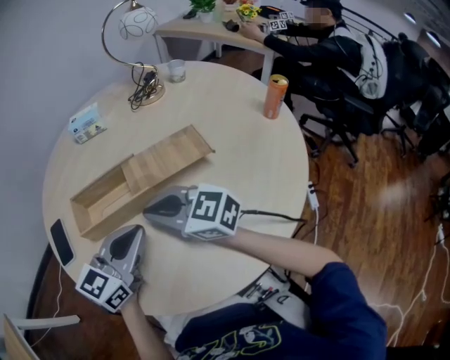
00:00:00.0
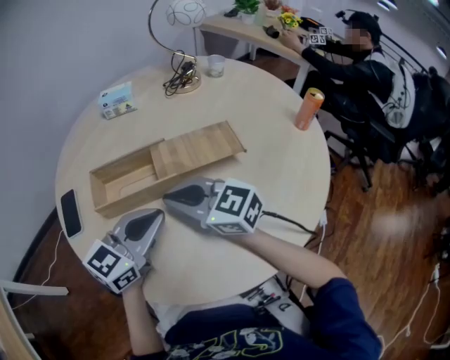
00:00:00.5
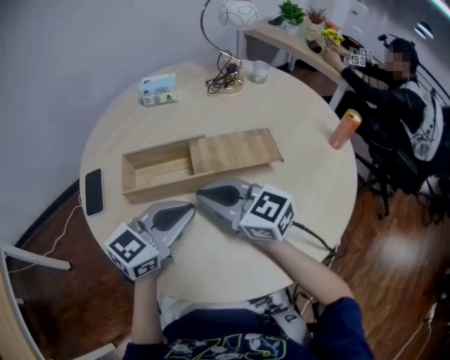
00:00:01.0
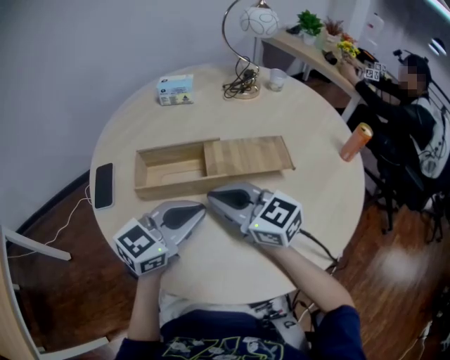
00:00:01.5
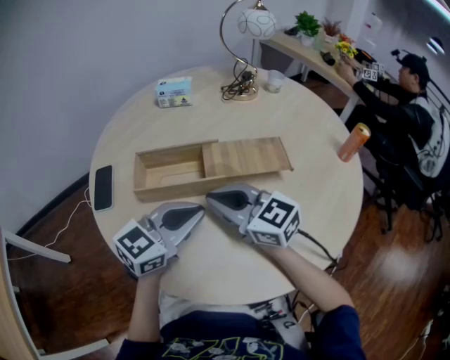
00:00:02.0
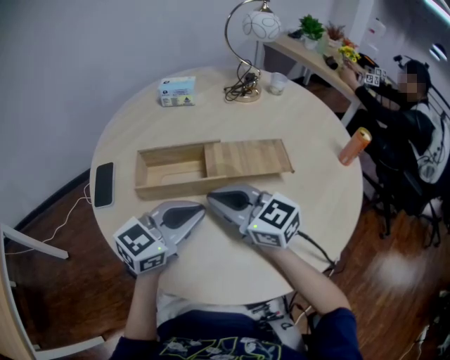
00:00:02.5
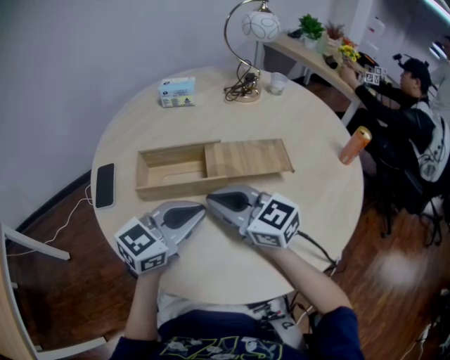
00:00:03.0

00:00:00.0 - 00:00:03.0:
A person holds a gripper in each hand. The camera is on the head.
00:00:00.0 - 00:00:03.0: Both grippers stay put.

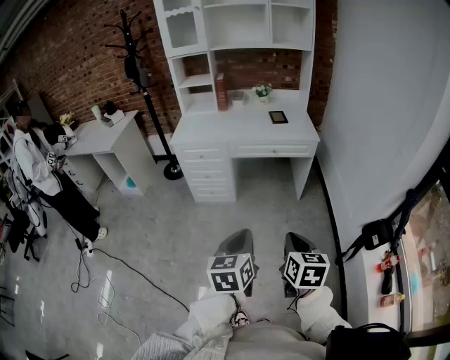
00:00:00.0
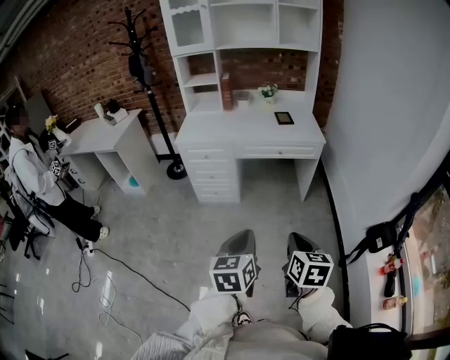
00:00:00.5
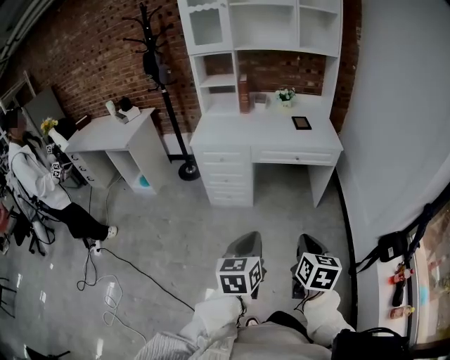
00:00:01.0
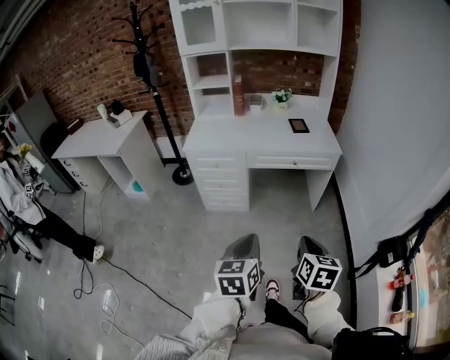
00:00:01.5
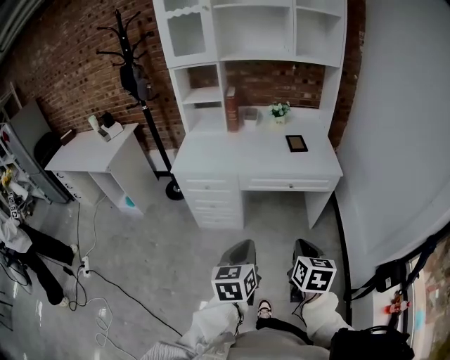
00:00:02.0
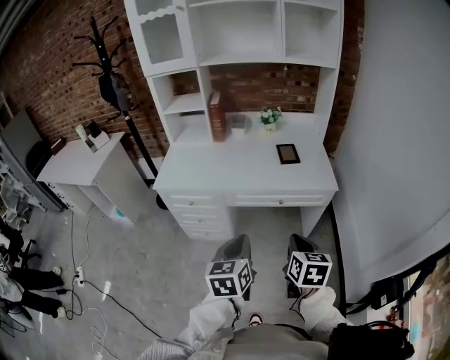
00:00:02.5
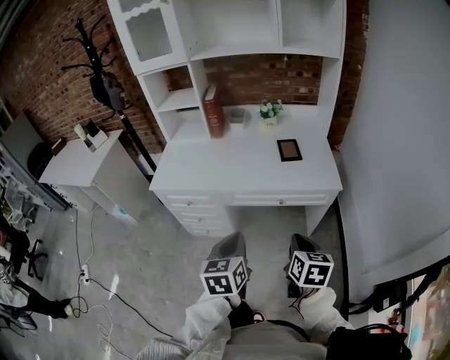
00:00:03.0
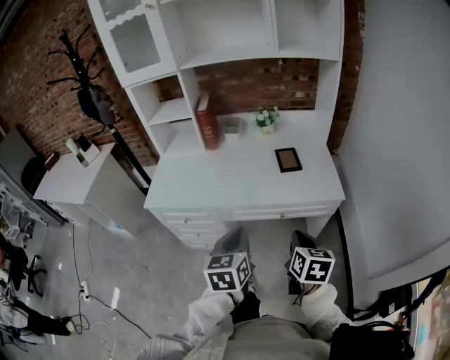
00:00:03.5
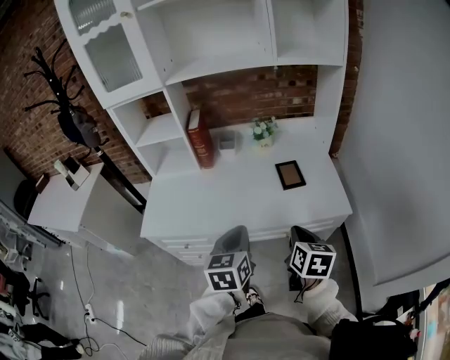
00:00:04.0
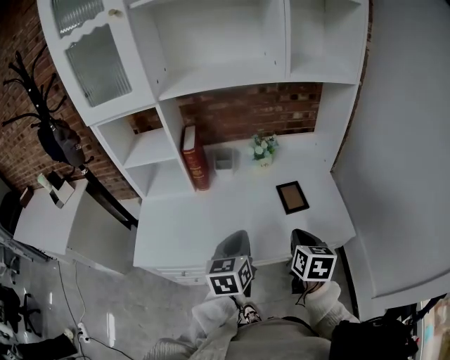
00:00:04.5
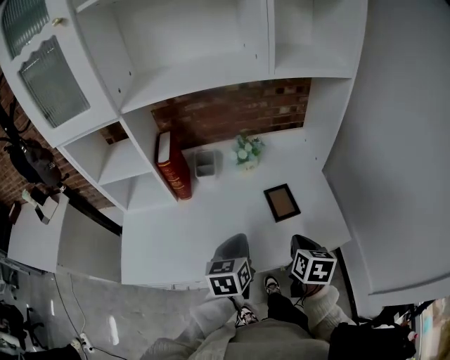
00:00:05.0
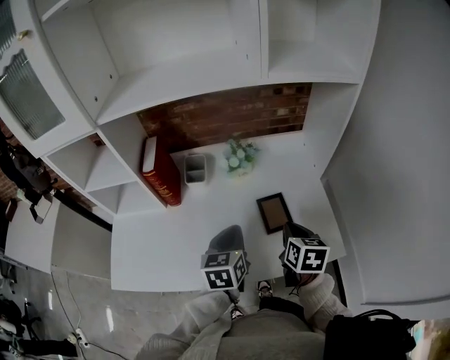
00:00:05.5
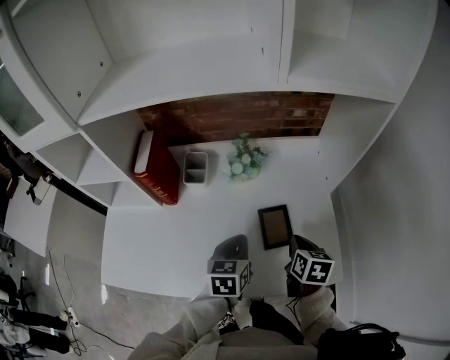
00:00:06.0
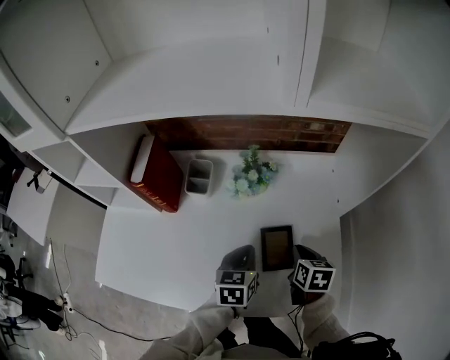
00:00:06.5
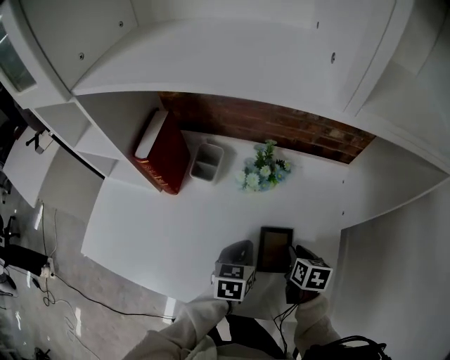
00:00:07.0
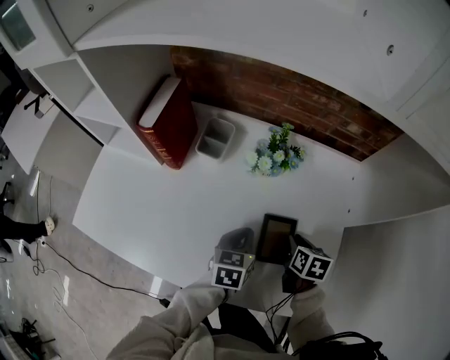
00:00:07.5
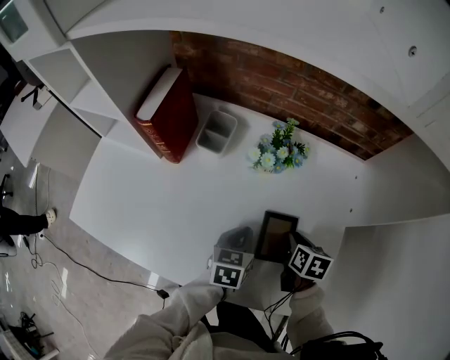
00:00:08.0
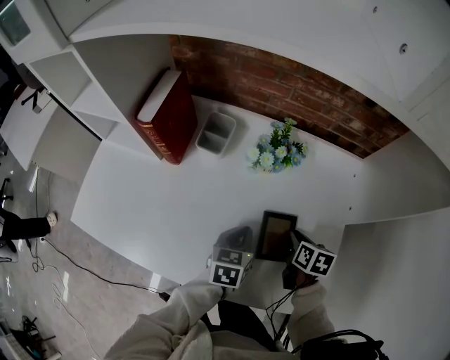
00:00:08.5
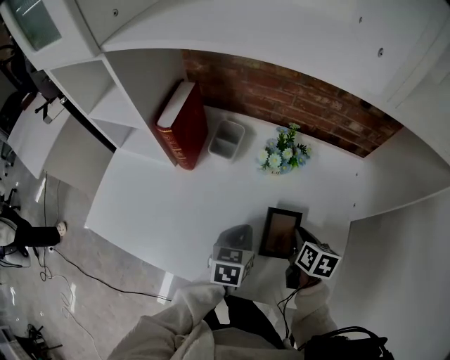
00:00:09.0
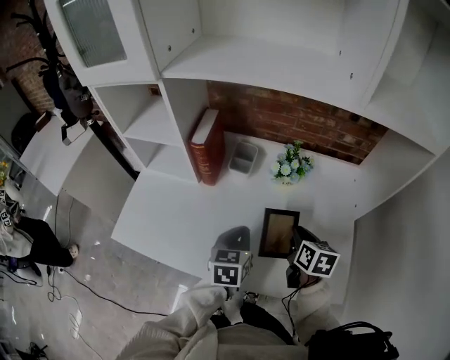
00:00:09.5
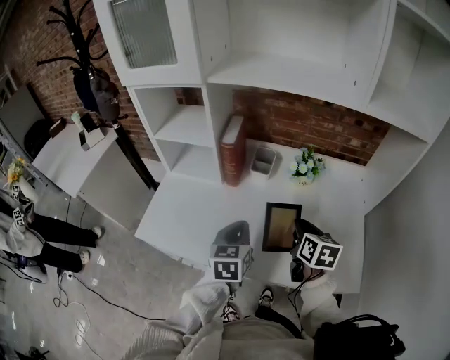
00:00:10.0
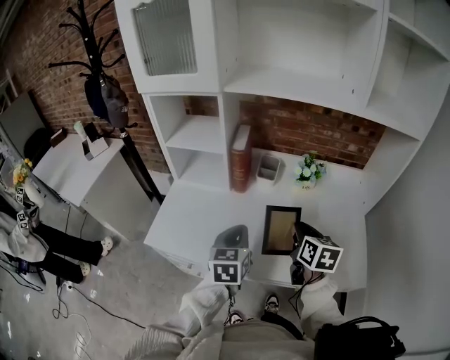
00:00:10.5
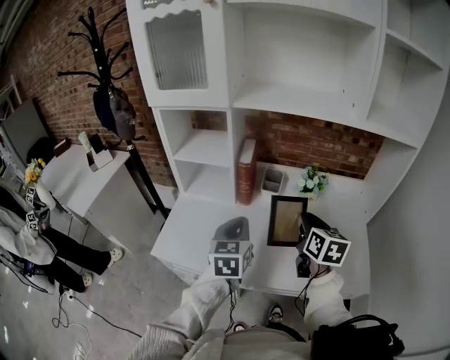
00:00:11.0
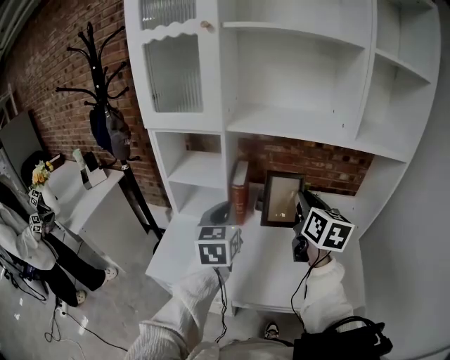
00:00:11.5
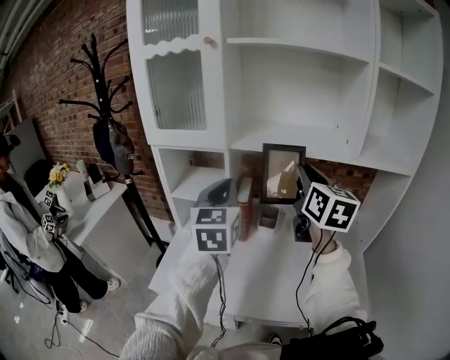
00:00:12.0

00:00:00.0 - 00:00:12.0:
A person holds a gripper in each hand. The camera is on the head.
00:00:00.0 - 00:00:02.0: Both grippers travel together forward, approximately 25 cm.
00:00:02.0 - 00:00:04.0: Both grippers move forward, approximately 40 cm.
00:00:04.0 - 00:00:06.0: The two grippers go about 30 cm forward.
00:00:06.0 - 00:00:08.0: The right gripper goes approximately 15 cm downward and forward; the left gripper moves downward, some 10 cm.
00:00:08.0 - 00:00:10.0: The two grippers go approximately 25 cm to the left, upward and backward. The right gripper turns by some 20 degrees.
00:00:10.0 - 00:00:12.0: The right gripper moves upward, approximately 30 cm, and angles its fingers upward, by roughly 30 degrees; the left gripper shifts approximately 30 cm upward and to the left, and changes its angle by roughly 30 degrees.

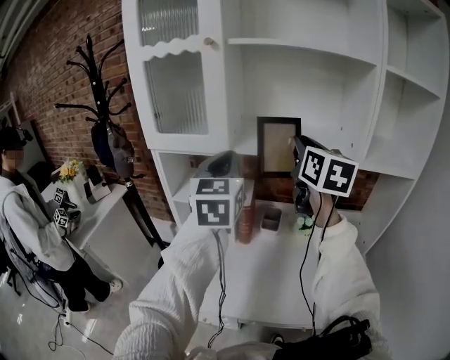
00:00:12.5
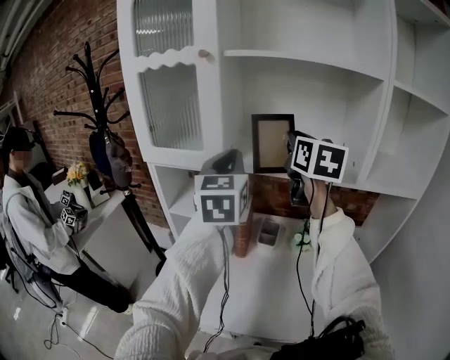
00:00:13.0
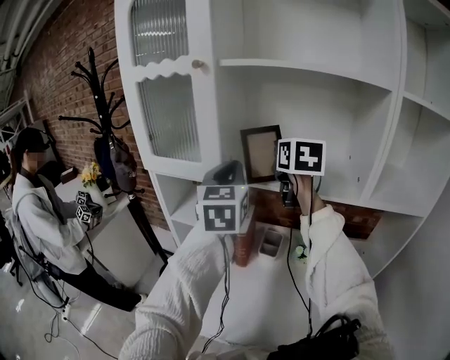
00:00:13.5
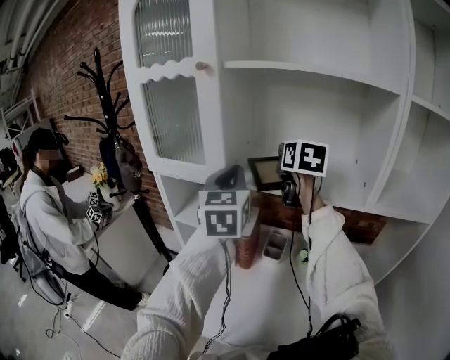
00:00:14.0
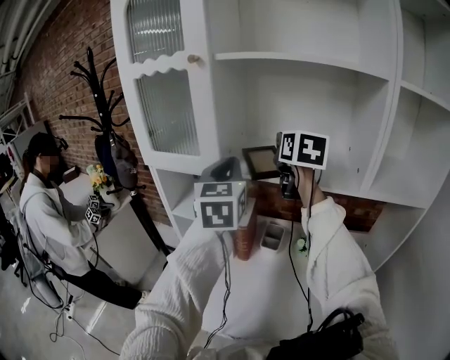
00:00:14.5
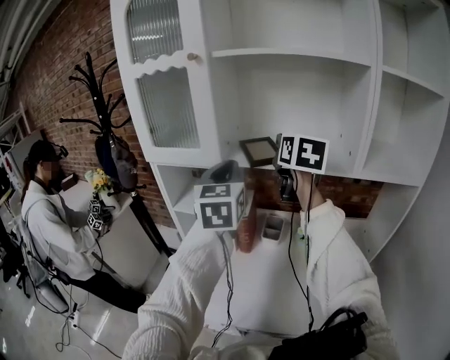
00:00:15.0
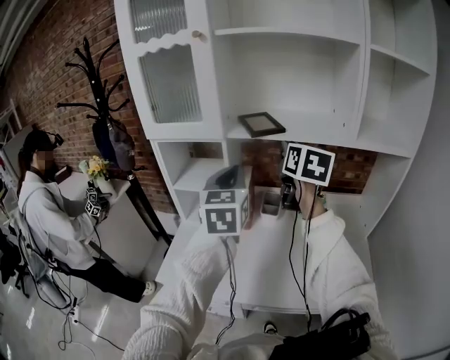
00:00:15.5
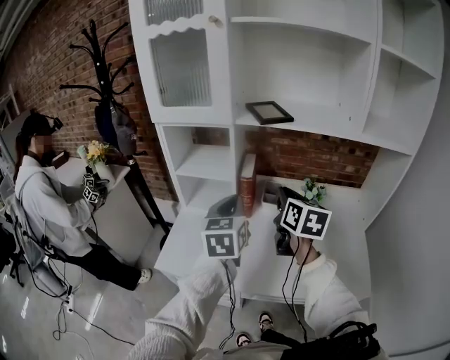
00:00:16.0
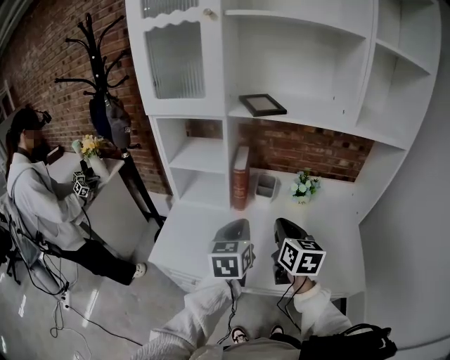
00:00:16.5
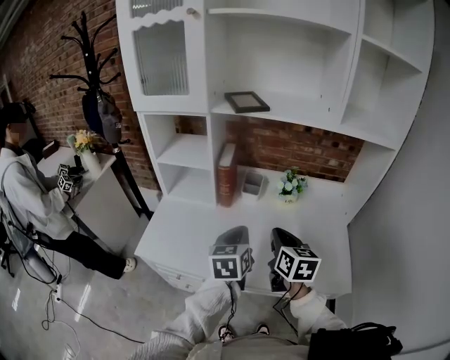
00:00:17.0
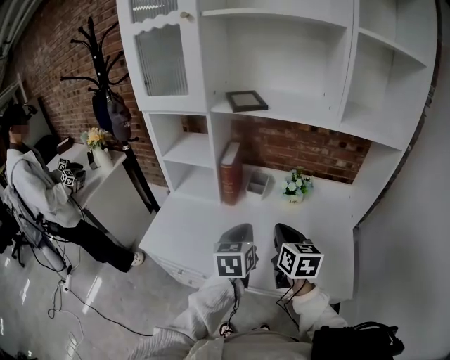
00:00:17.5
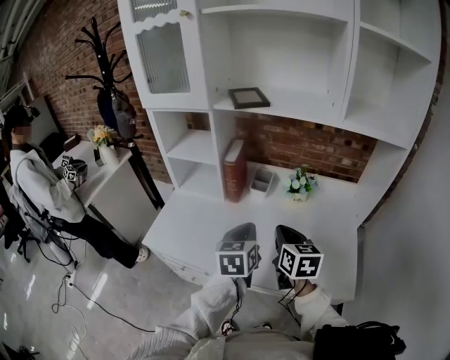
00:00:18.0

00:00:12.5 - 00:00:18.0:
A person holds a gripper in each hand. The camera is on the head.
00:00:12.5 - 00:00:14.5: The left gripper is displaced forward by approximately 10 cm. Meanwhile the right gripper heads forward, covering roughly 15 cm.
00:00:14.5 - 00:00:16.0: The right gripper heads backward and downward, covering roughly 30 cm; the left gripper moves downward and backward, roughly 25 cm.
00:00:16.0 - 00:00:18.0: The left gripper travels to the right, downward and backward by about 20 cm. Meanwhile the right gripper travels downward, backward and to the right by some 20 cm.

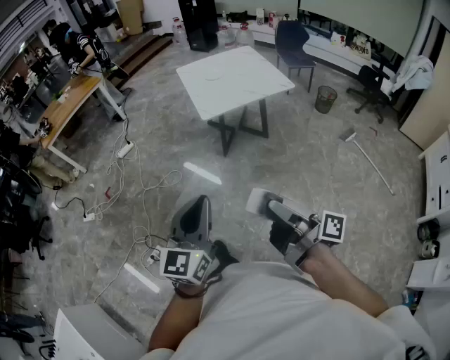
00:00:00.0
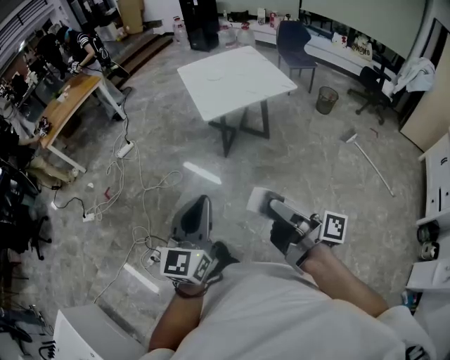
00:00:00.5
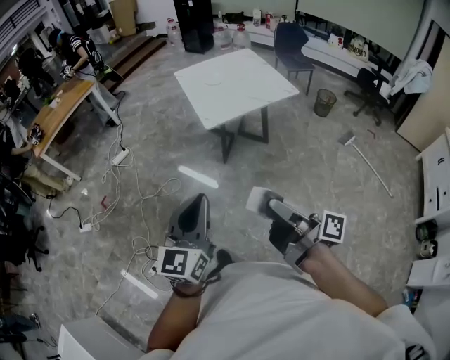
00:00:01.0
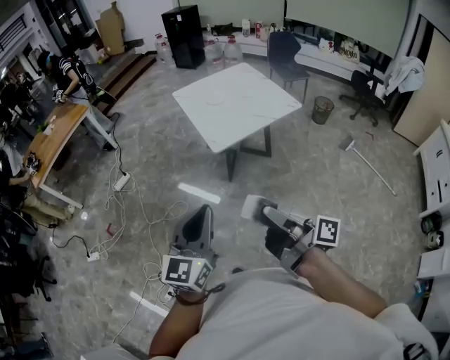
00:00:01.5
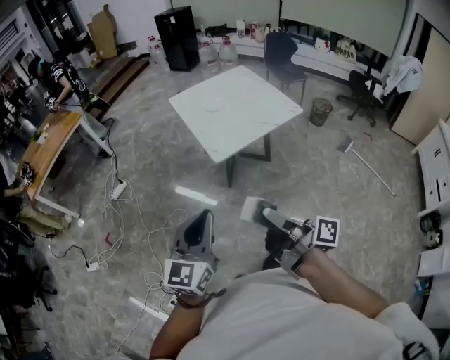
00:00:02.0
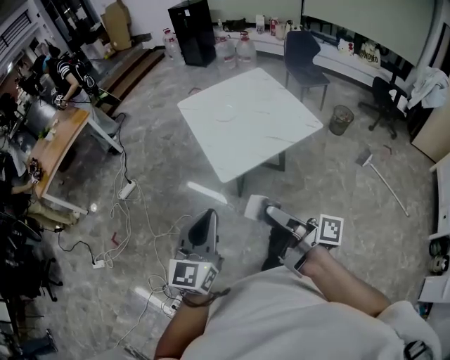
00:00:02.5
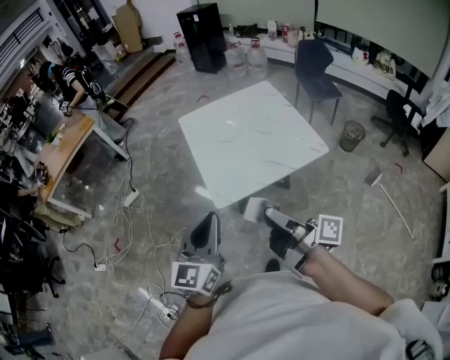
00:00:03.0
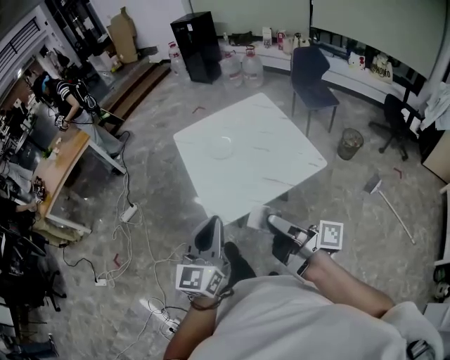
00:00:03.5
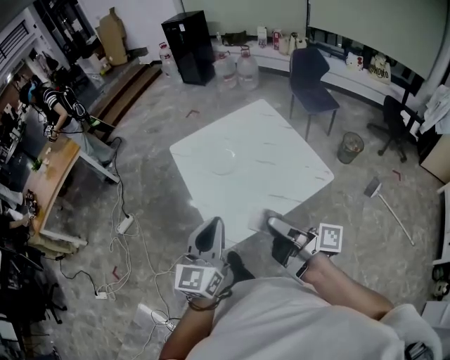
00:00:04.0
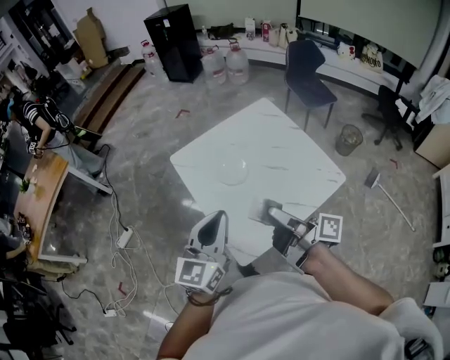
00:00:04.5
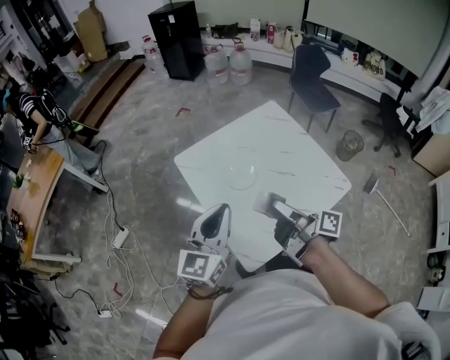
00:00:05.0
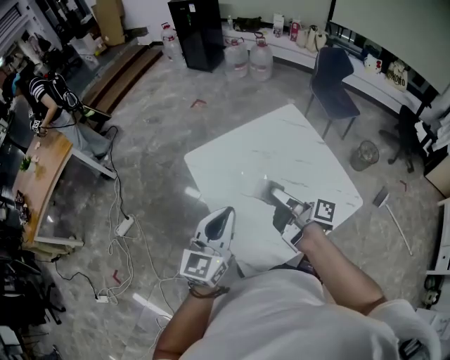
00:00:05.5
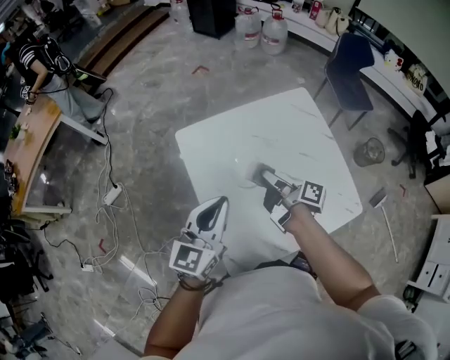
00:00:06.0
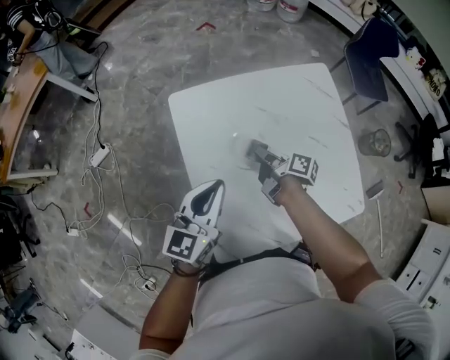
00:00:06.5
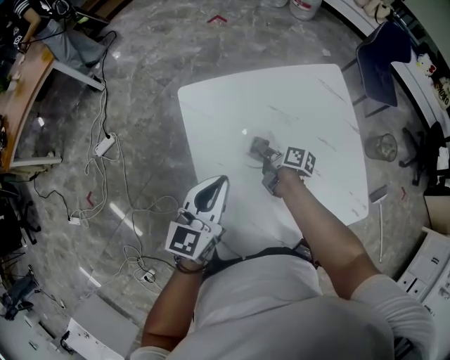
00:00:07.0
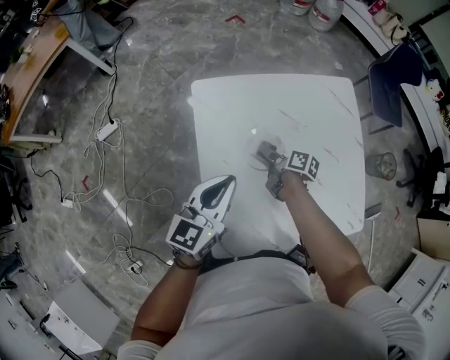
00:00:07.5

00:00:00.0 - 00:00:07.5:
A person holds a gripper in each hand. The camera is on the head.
00:00:00.0 - 00:00:02.0: The left gripper changes place by about 30 cm.
00:00:02.0 - 00:00:04.0: The left gripper ends up about 50 cm from where it was.
00:00:04.0 - 00:00:05.5: The left gripper changes place by approximately 25 cm.
00:00:05.5 - 00:00:07.5: The left gripper goes about 15 cm downward.
